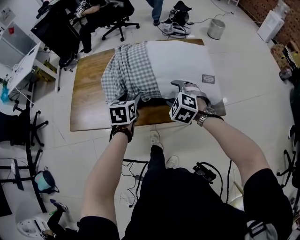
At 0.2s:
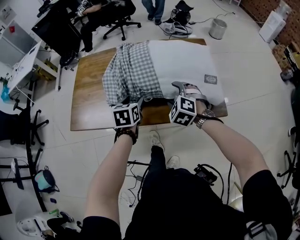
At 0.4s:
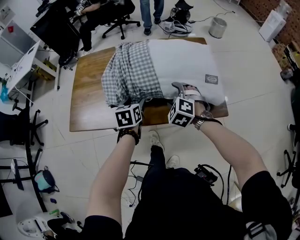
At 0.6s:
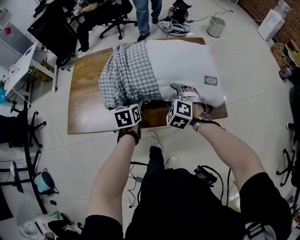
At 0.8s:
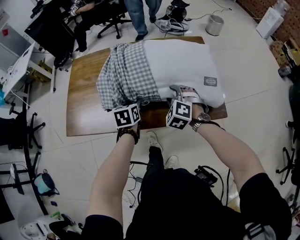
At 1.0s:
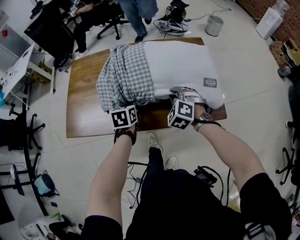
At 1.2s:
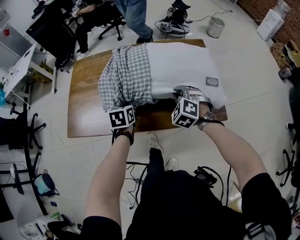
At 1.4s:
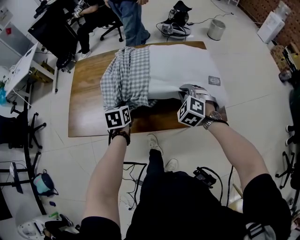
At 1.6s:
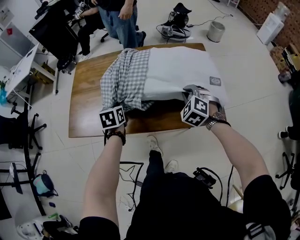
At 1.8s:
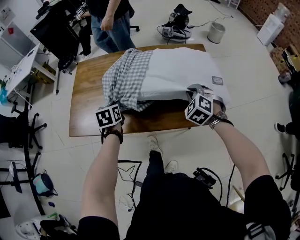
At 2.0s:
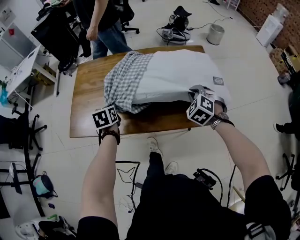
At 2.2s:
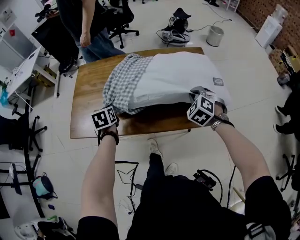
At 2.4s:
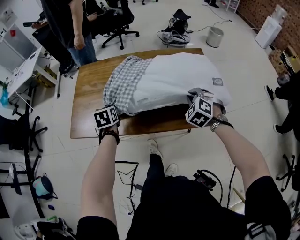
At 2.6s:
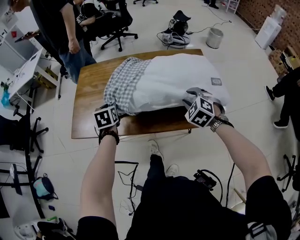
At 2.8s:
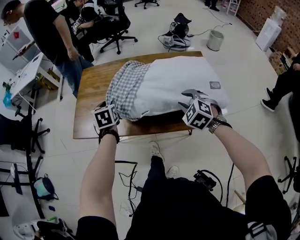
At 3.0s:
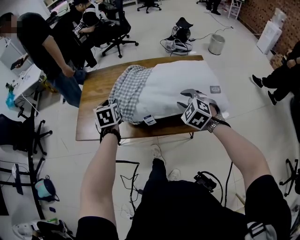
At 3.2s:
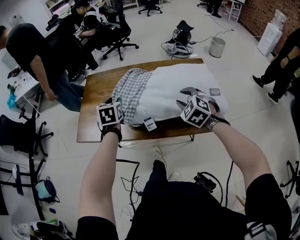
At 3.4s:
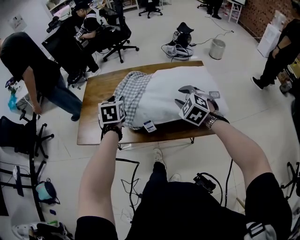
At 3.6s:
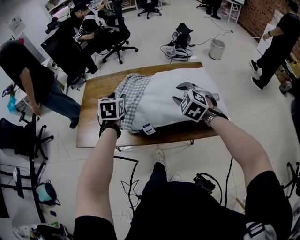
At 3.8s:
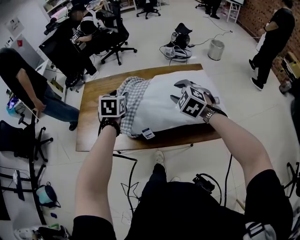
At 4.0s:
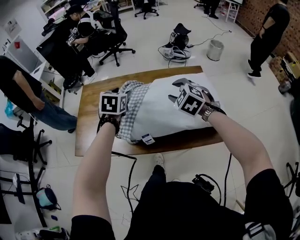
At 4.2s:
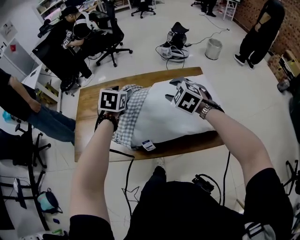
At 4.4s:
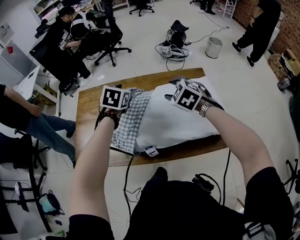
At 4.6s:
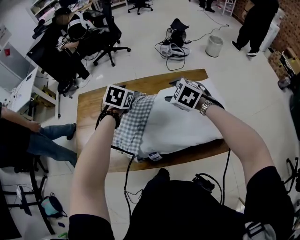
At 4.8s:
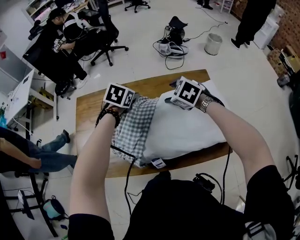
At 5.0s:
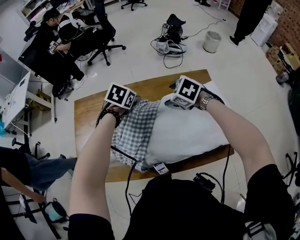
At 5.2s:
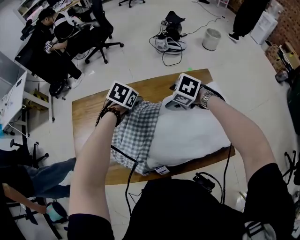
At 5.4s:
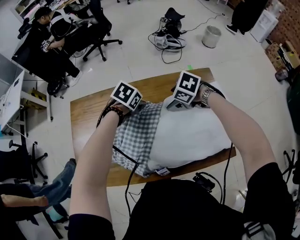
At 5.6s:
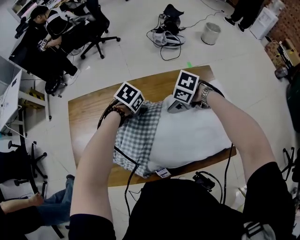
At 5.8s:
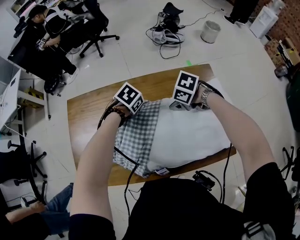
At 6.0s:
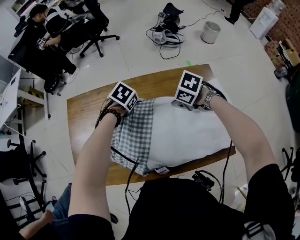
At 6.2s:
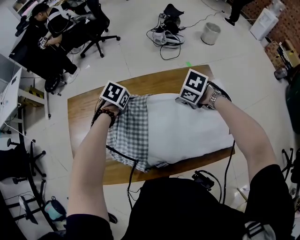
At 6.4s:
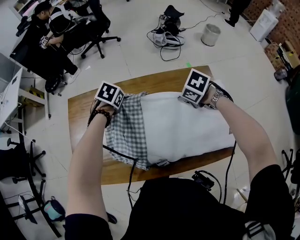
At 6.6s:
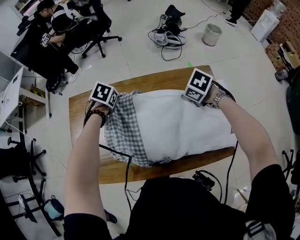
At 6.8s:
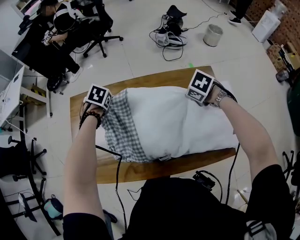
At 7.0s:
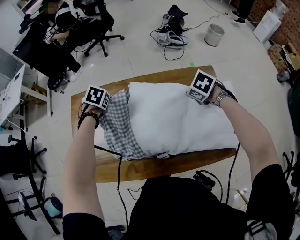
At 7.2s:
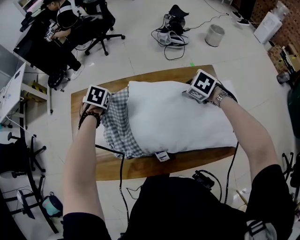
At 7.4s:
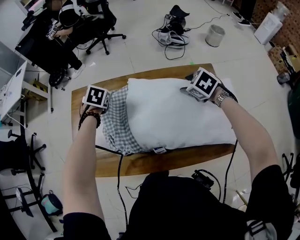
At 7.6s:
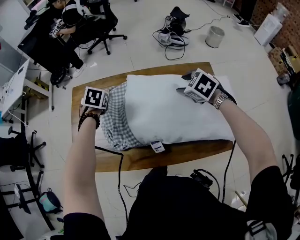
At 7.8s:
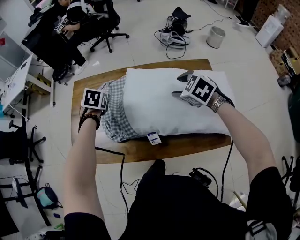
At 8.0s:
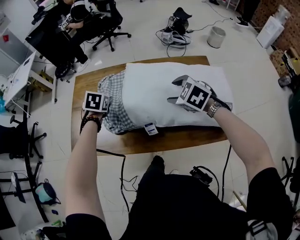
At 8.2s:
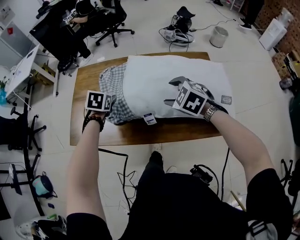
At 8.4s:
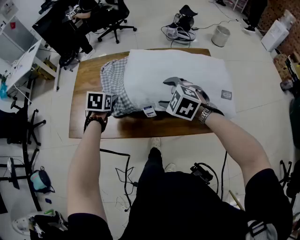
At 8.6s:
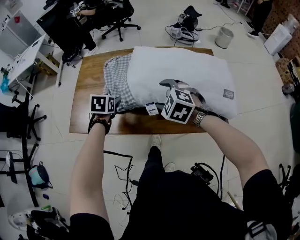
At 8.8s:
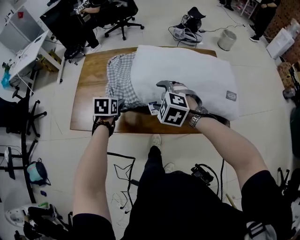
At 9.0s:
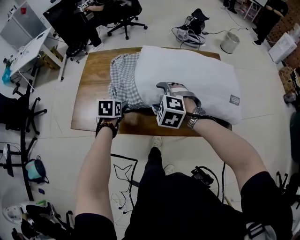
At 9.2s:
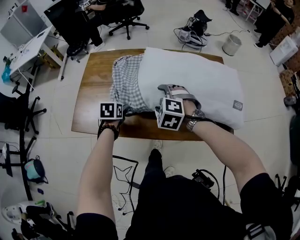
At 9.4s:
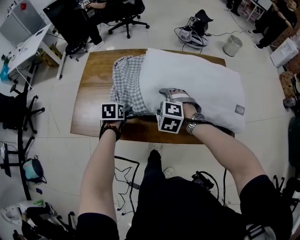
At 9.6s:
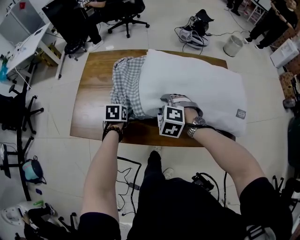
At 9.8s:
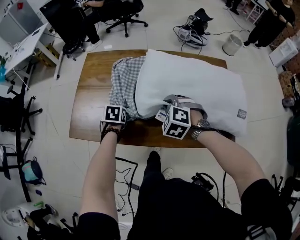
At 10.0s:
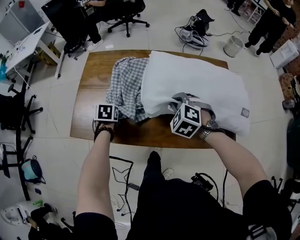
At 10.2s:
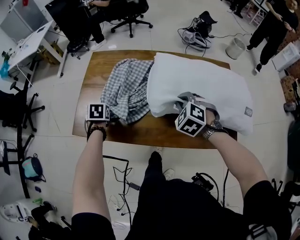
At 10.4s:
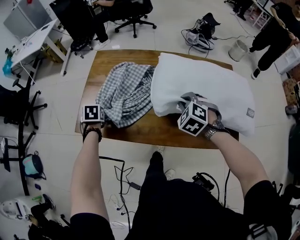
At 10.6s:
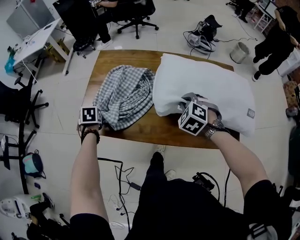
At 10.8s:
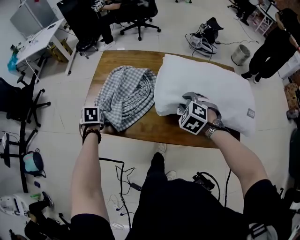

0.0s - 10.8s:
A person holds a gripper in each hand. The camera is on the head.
0.0s - 1.6s: The right gripper shifts some 5 cm to the right, and closes. The left gripper shifts roughly 5 cm to the left, and closes up.
1.6s - 3.0s: The left gripper goes some 10 cm upward and backward, and opens. Meanwhile the right gripper heads backward, covering some 10 cm, and opens.
3.0s - 4.6s: The left gripper moves forward and to the right, about 25 cm, and rotates approximately 40 degrees. The right gripper goes approximately 20 cm forward.
4.6s - 6.2s: The right gripper shifts by some 15 cm, swivels roughly 30 degrees, and closes up, while the left gripper moves approximately 20 cm, rotates approximately 30 degrees, and closes.
6.2s - 7.8s: The left gripper changes place by about 15 cm, changes its angle by approximately 30 degrees, and opens. Meanwhile the right gripper shifts by some 10 cm, swivels some 30 degrees, and opens its fingers.
7.8s - 9.2s: The left gripper goes about 20 cm backward and downward, and changes its angle by roughly 20 degrees. Meanwhile the right gripper shifts about 20 cm to the left, downward and backward, and swivels about 40 degrees.
9.2s - 10.8s: The left gripper shifts roughly 20 cm to the left, and closes up. The right gripper closes.

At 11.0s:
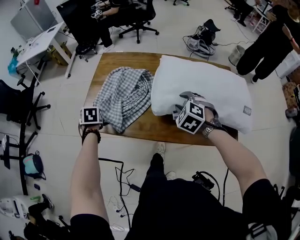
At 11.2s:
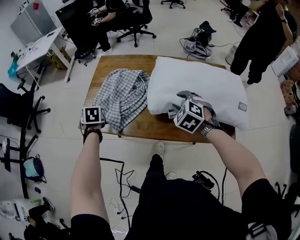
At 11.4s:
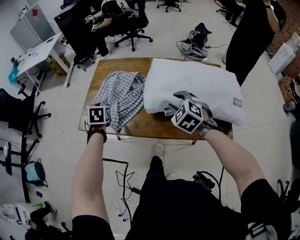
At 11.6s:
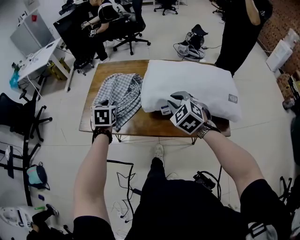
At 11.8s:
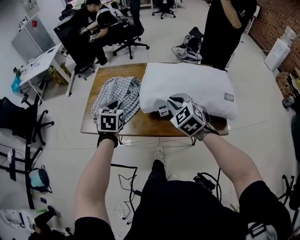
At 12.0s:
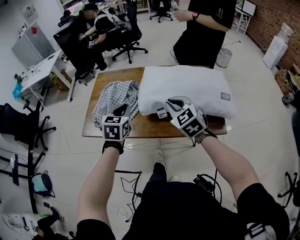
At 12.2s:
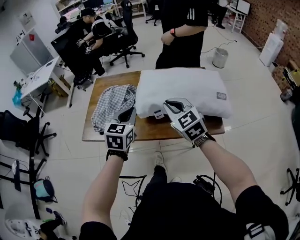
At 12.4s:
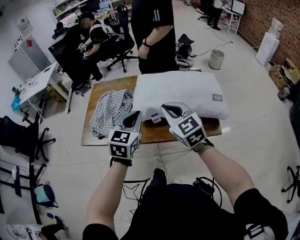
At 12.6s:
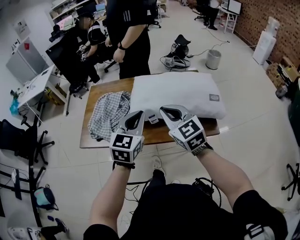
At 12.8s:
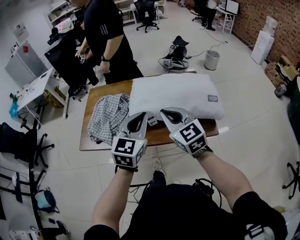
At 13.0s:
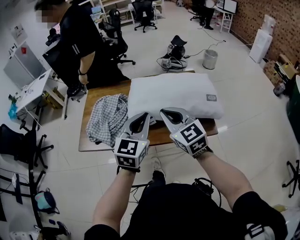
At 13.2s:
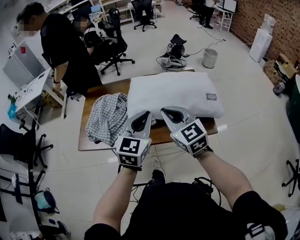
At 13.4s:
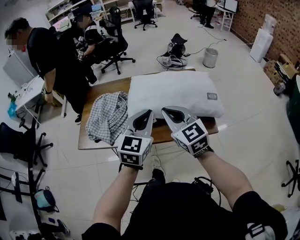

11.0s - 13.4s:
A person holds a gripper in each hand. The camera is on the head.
11.0s - 12.2s: The right gripper heads backward and upward, covering some 30 cm, angles its fingers upward, by approximately 40 degrees, and closes its fingers, while the left gripper moves to the right, backward and upward, approximately 50 cm, tilts its fingers approximately 40 degrees upward, and closes.
12.2s - 13.4s: The right gripper ends up approximately 5 cm from where it was, while the left gripper moves to the right, upward and backward, roughly 15 cm.

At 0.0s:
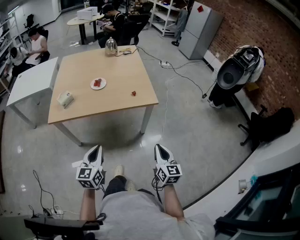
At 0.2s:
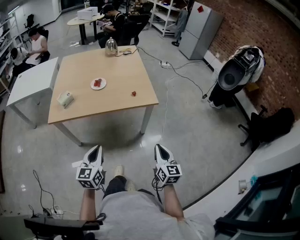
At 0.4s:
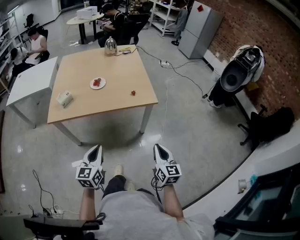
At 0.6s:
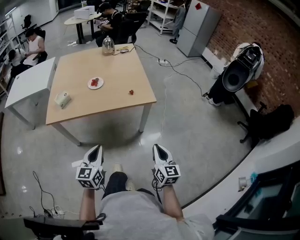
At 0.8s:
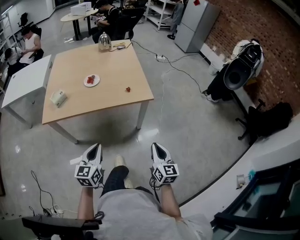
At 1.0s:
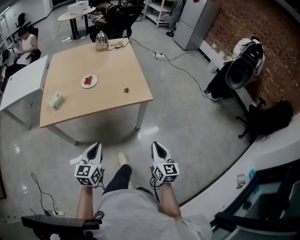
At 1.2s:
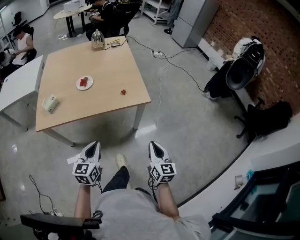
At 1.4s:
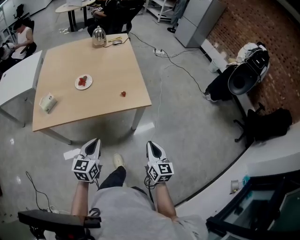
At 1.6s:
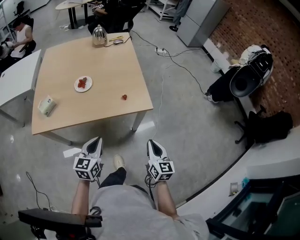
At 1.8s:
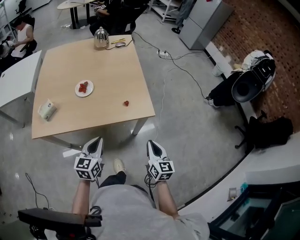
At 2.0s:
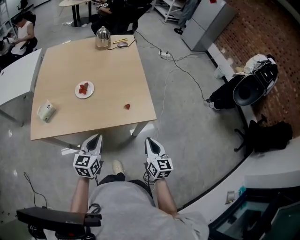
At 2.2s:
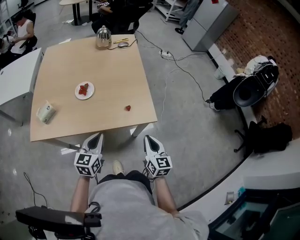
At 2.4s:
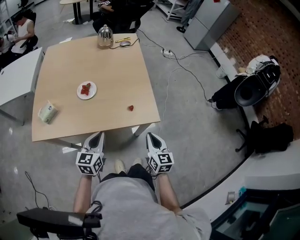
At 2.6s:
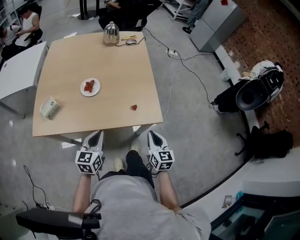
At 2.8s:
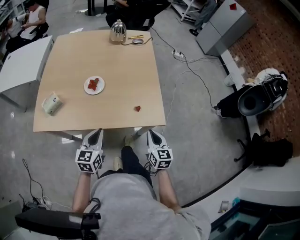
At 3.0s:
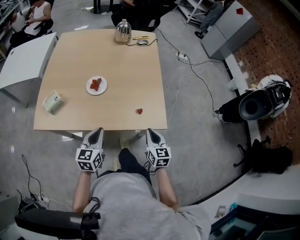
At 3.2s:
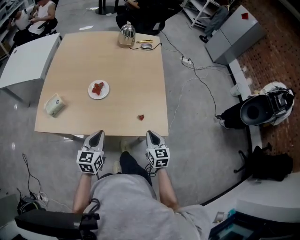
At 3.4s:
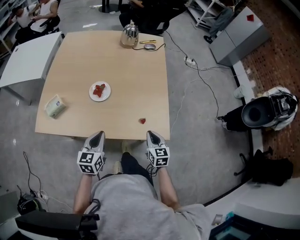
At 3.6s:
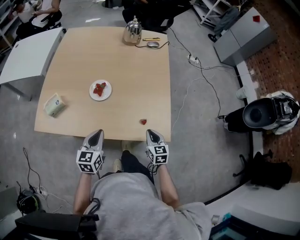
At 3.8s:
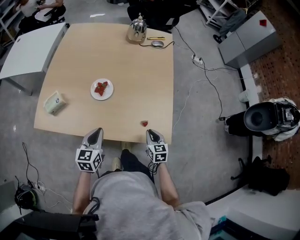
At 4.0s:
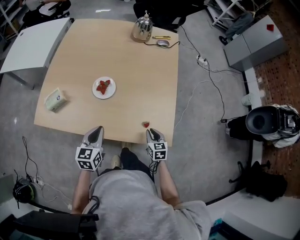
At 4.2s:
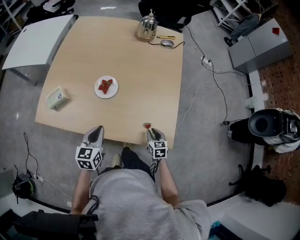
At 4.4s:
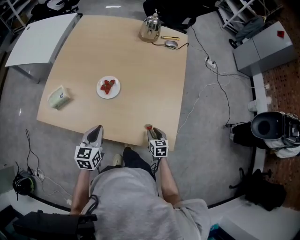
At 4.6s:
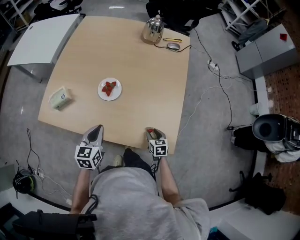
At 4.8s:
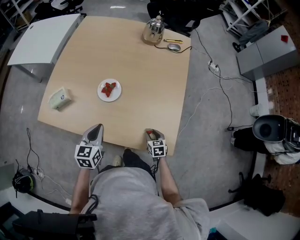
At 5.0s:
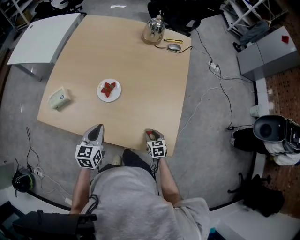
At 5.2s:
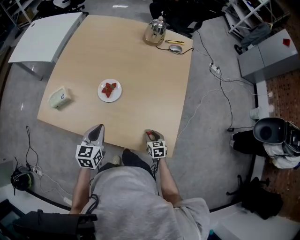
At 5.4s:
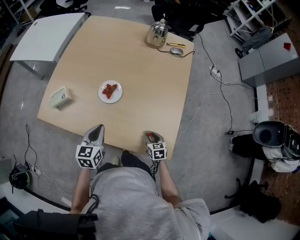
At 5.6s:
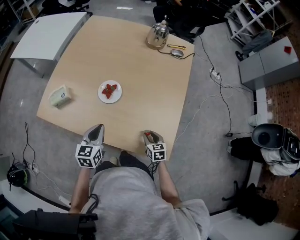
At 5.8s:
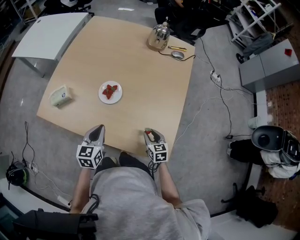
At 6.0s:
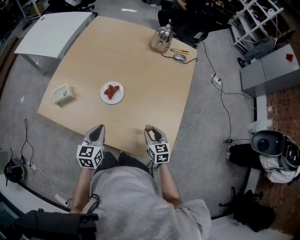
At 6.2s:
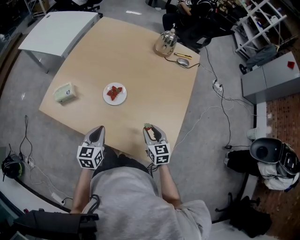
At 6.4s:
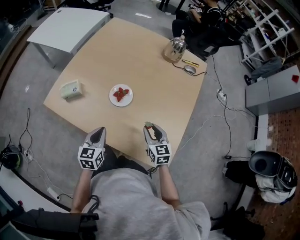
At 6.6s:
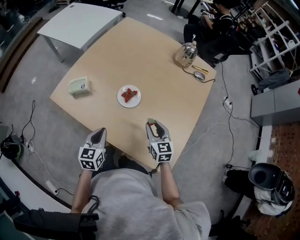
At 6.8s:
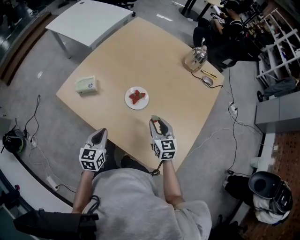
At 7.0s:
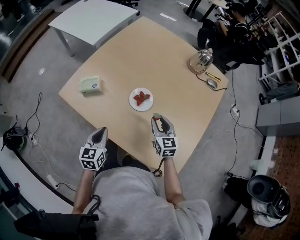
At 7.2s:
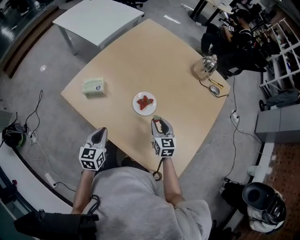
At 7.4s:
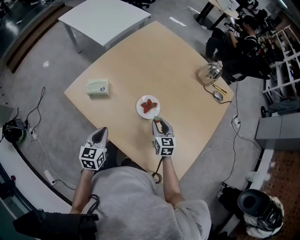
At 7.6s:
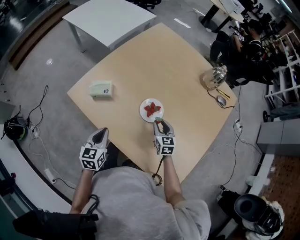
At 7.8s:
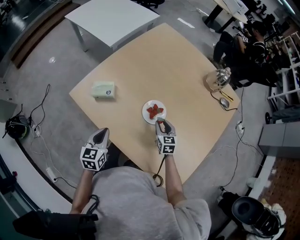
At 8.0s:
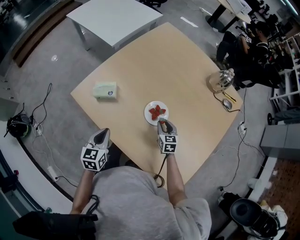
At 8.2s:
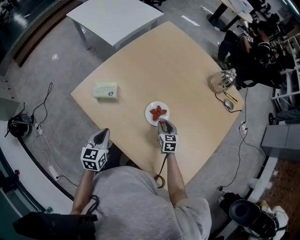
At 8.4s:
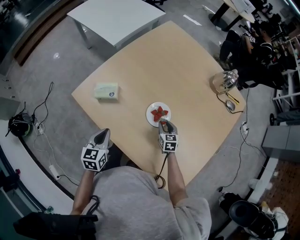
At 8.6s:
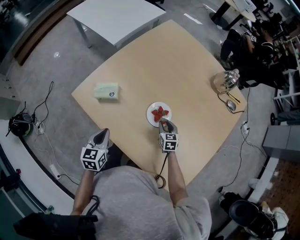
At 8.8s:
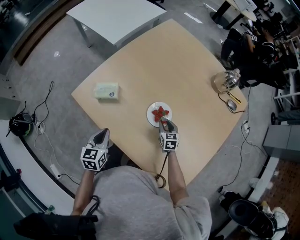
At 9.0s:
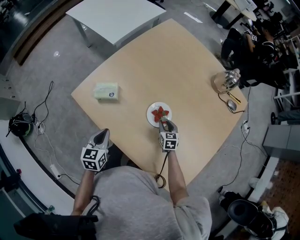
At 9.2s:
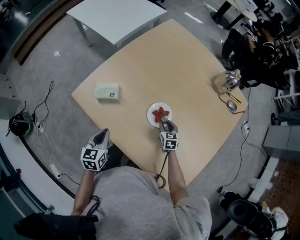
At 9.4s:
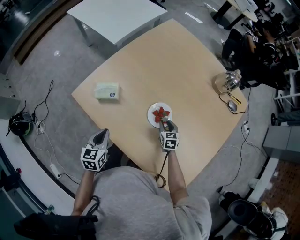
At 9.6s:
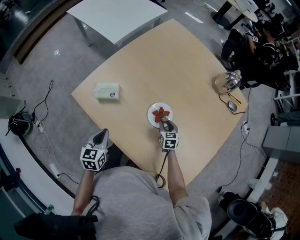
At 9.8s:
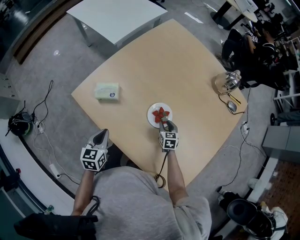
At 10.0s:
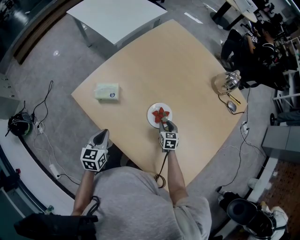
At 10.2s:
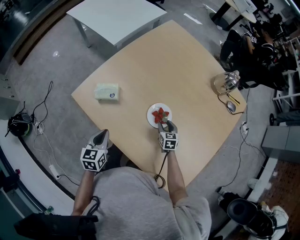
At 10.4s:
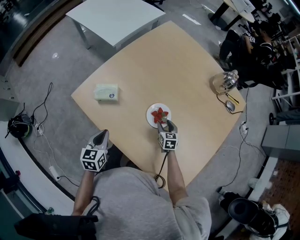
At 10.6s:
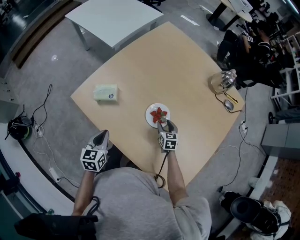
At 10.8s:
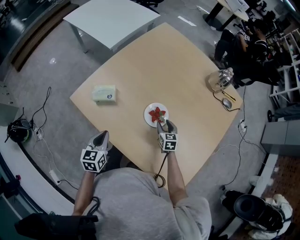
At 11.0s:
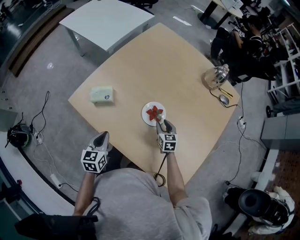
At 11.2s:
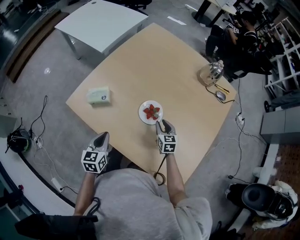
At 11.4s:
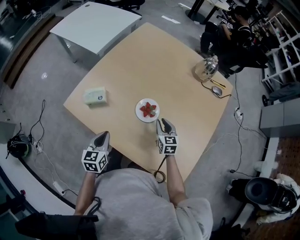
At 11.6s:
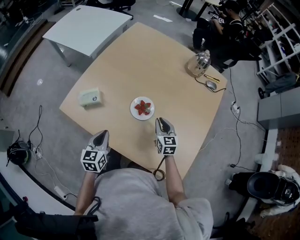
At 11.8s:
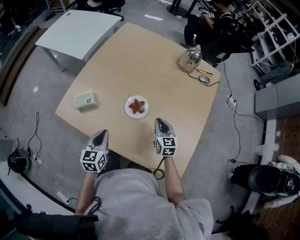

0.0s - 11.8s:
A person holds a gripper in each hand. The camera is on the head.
0.0s - 1.4s: Both grippers move forward, roughly 15 cm.
1.4s - 3.0s: The grippers both shift forward by about 20 cm.
3.0s - 4.4s: The right gripper shifts about 20 cm downward and forward, rotates some 30 degrees, and opens its fingers; the left gripper moves forward, roughly 10 cm.
4.4s - 6.0s: The right gripper moves upward and forward, about 10 cm.
6.0s - 7.4s: The left gripper travels to the left by approximately 15 cm, while the right gripper goes roughly 20 cm forward and to the left.
7.4s - 8.8s: The right gripper heads downward and forward, covering roughly 10 cm. The left gripper ends up roughly 5 cm from where it was.
8.8s - 10.4s: Neither gripper changes place.
10.4s - 11.8s: The right gripper moves upward, backward and to the right, approximately 15 cm, swivels roughly 20 degrees, and closes. The left gripper goes approximately 10 cm to the right.
